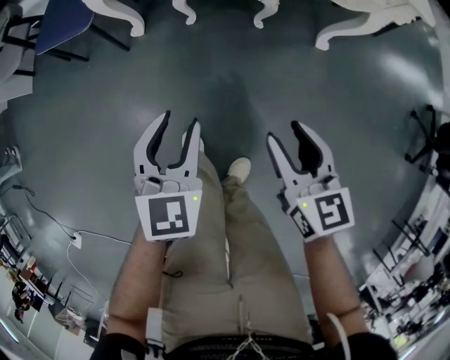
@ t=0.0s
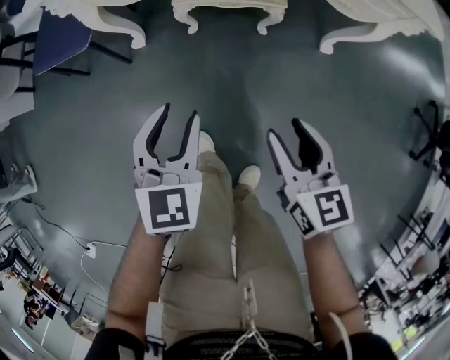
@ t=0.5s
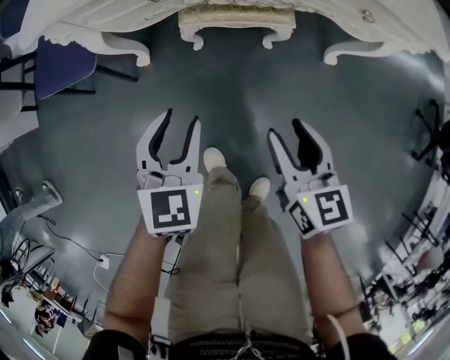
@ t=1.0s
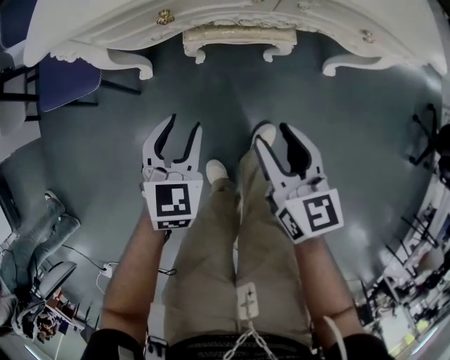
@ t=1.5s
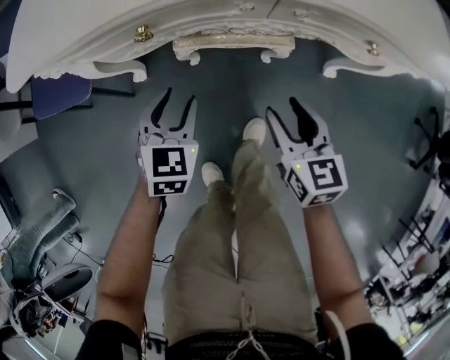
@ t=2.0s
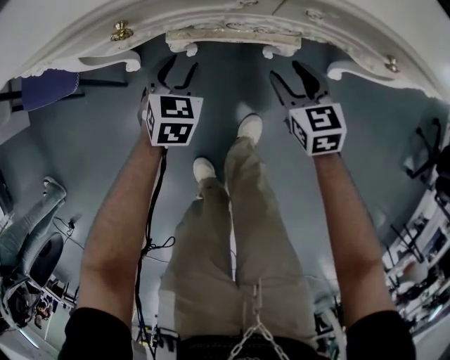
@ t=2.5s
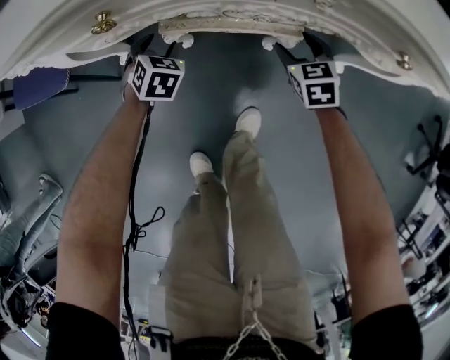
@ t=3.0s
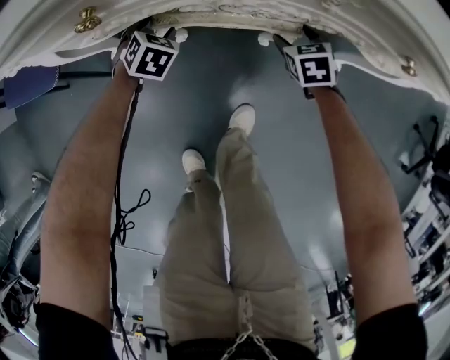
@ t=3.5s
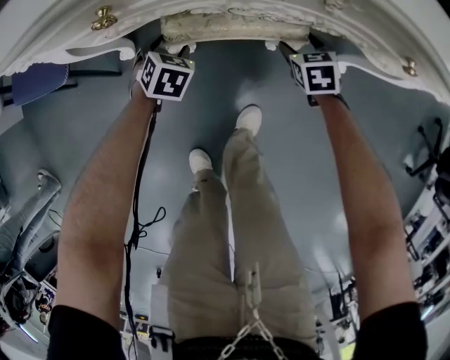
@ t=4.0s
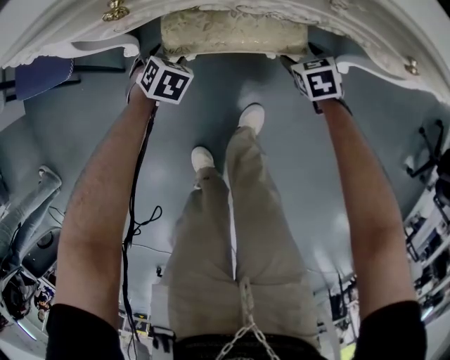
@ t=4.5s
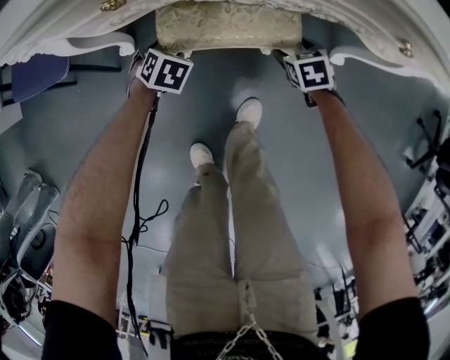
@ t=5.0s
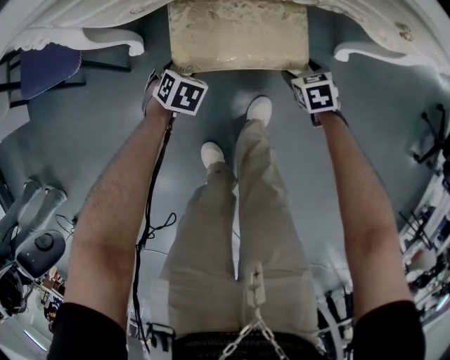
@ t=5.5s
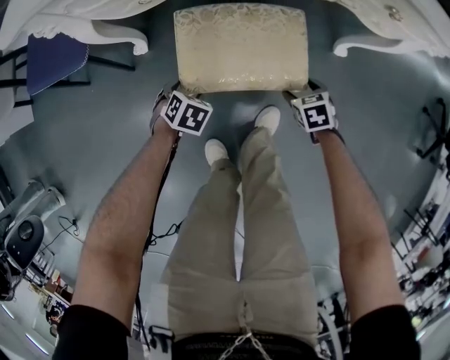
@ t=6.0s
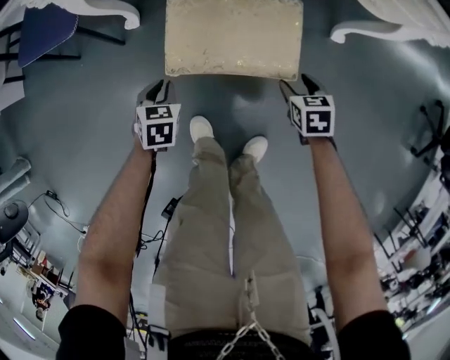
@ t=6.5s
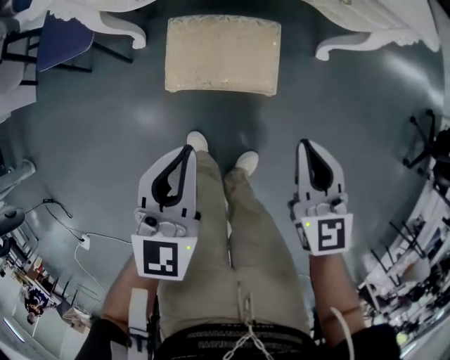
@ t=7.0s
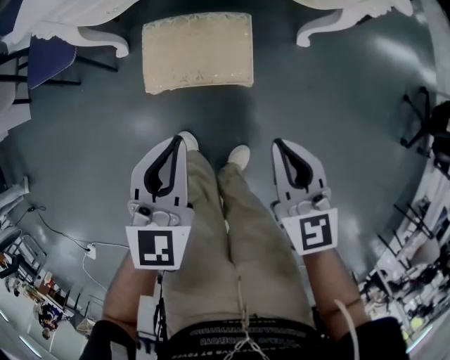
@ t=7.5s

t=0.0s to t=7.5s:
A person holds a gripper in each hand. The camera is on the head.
t=0.0s to t=2.0s: The right gripper shifts by some 5 cm; the left gripper travels downward by some 10 cm.
t=2.0s to t=4.0s: The right gripper is displaced forward, downward and to the right by some 20 cm, swivels about 30 degrees, and opens; the left gripper shifts some 15 cm downward and forward, and changes its angle by approximately 20 degrees.
t=4.0s to t=5.5s: The right gripper moves roughly 10 cm, while the left gripper changes place by roughly 10 cm.
t=5.5s to t=7.5s: Both grippers move upward, roughly 25 cm. The left gripper tips its fingers upward by roughly 50 degrees, and closes. Meanwhile the right gripper angles its fingers upward, by about 40 degrees, and closes.

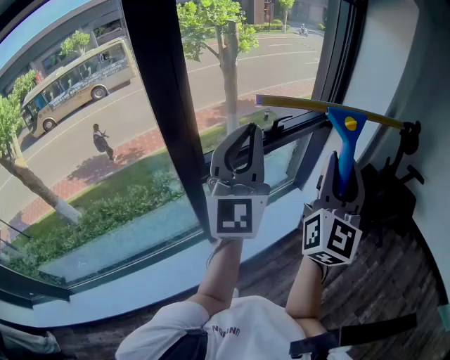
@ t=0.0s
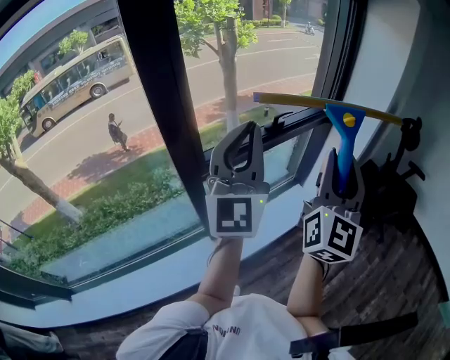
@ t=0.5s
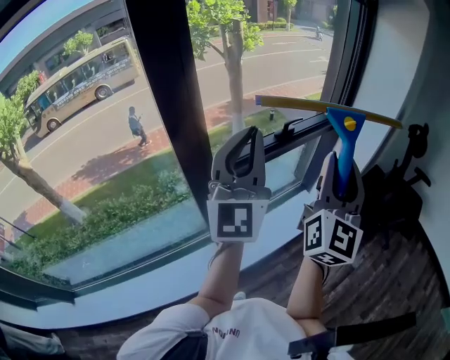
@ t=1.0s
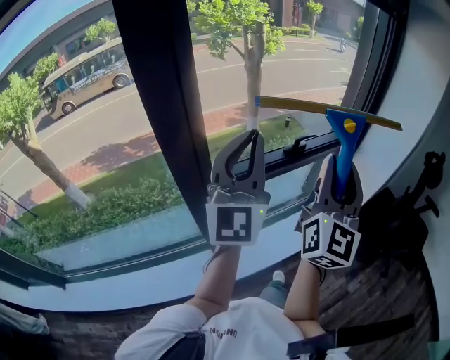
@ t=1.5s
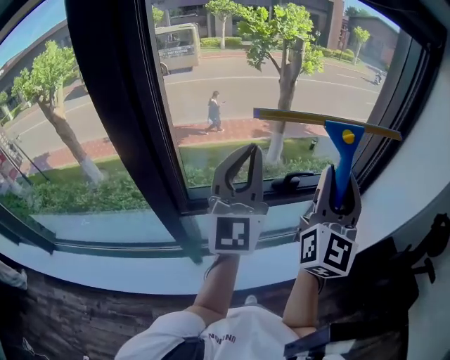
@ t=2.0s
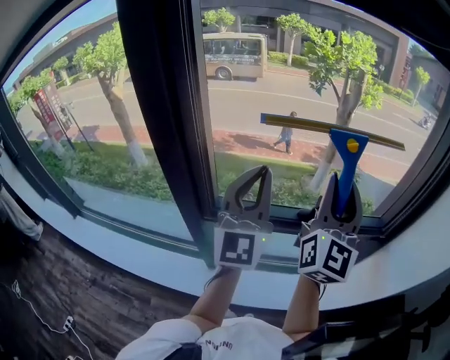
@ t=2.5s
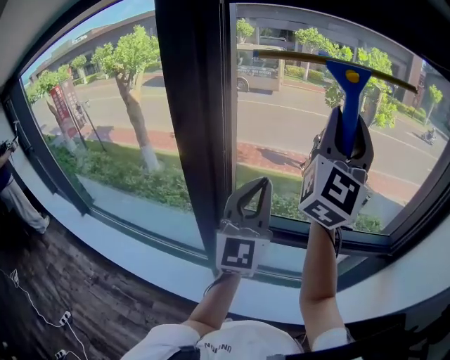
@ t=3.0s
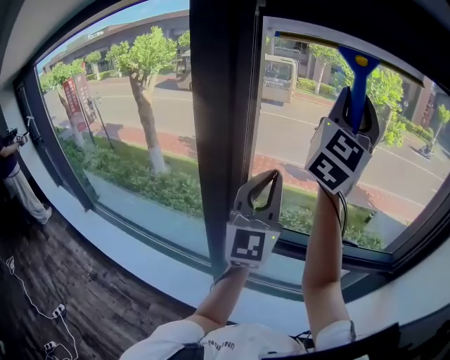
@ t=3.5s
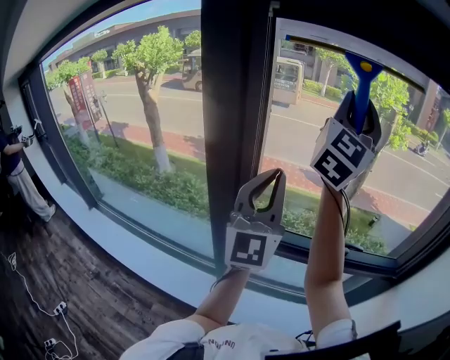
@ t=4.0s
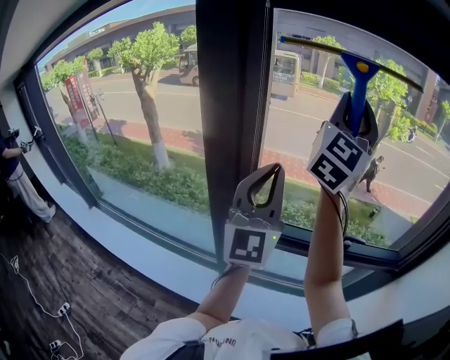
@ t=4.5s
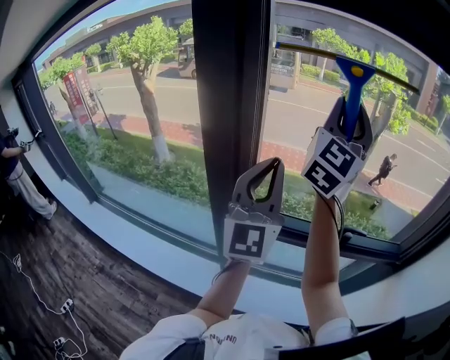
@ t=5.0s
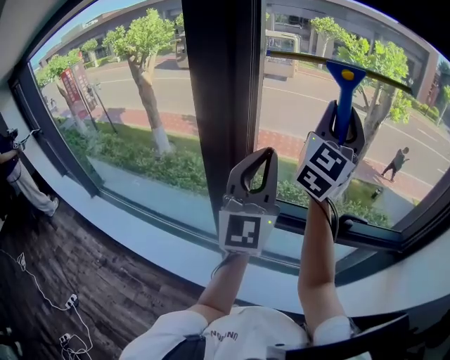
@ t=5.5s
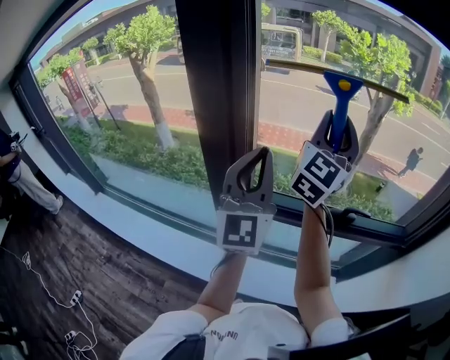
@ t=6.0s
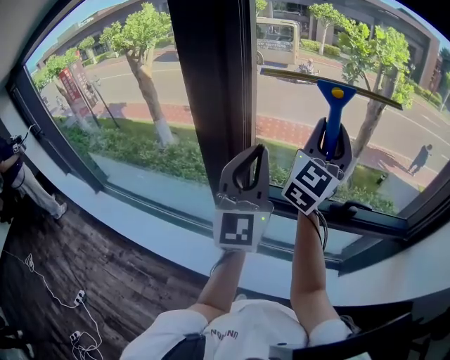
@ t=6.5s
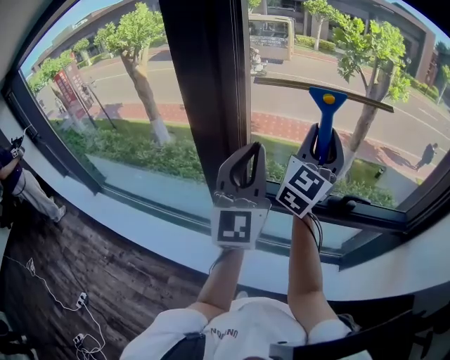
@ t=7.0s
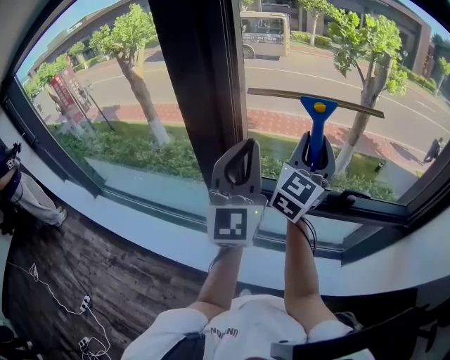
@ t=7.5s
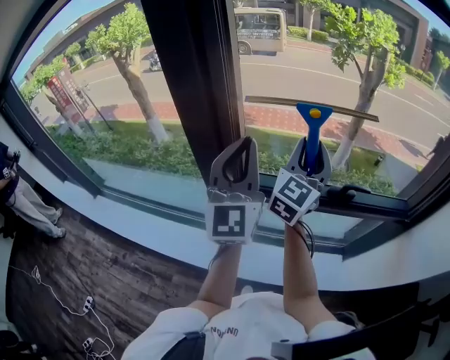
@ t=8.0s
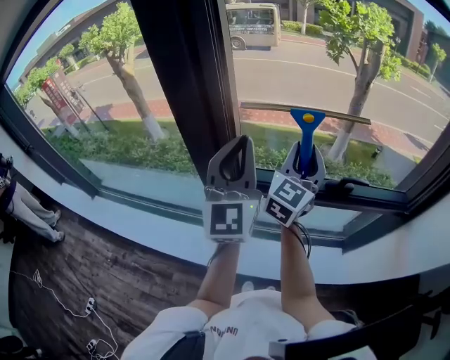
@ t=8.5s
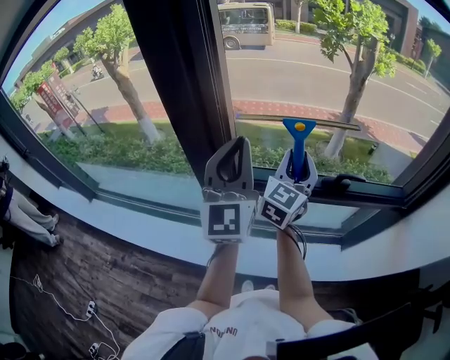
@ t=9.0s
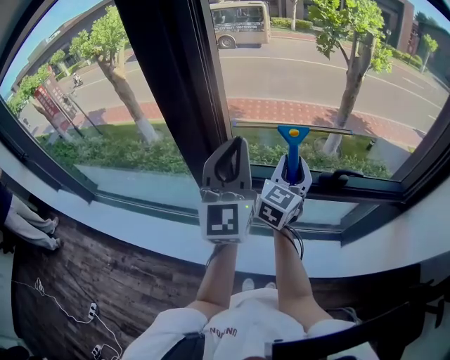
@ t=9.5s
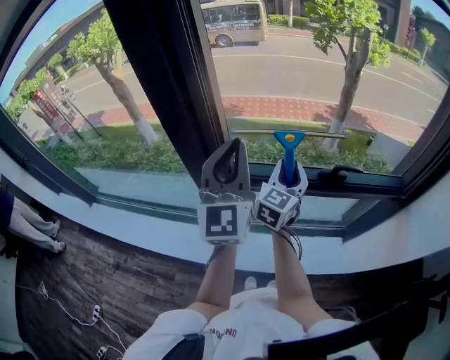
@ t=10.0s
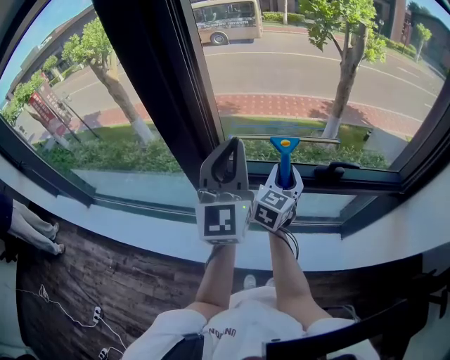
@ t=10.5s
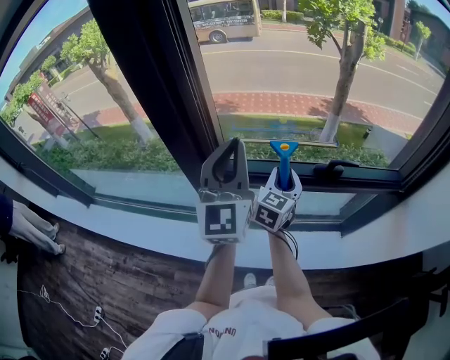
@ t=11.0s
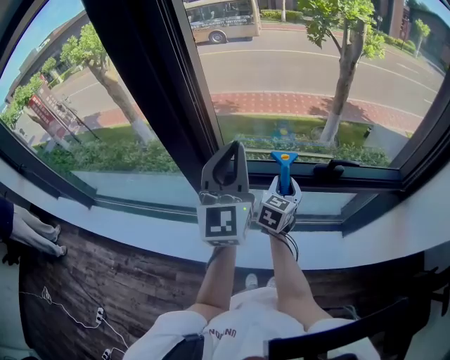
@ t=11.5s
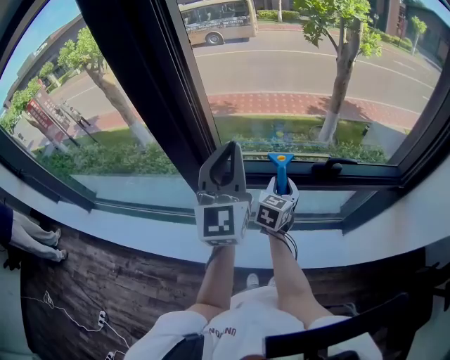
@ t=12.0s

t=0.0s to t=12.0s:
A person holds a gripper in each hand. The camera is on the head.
t=0.0s to t=2.0s: Both grippers move forward, some 25 cm. The left gripper swivels some 20 degrees, while the right gripper turns by about 20 degrees.
t=2.0s to t=4.0s: The left gripper travels to the left by some 15 cm, and turns by some 20 degrees. Meanwhile the right gripper shifts roughly 35 cm upward, to the left and forward.
t=4.0s to t=6.0s: The right gripper shifts roughly 15 cm downward.
t=6.0s to t=8.0s: The right gripper is displaced downward by roughly 15 cm.
t=8.0s to t=10.0s: The right gripper moves downward, some 15 cm.
t=10.0s to t=12.0s: The right gripper goes some 10 cm downward.

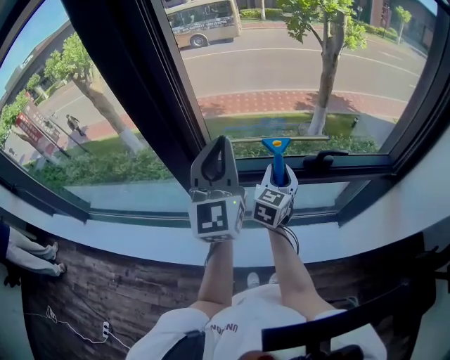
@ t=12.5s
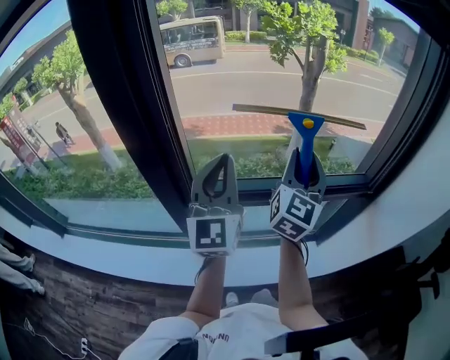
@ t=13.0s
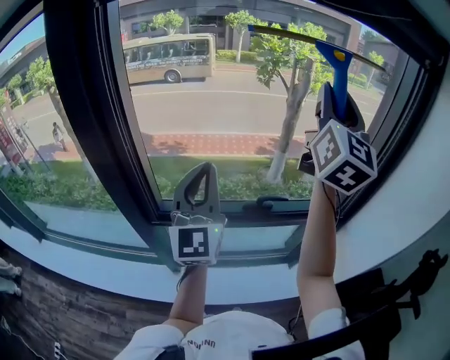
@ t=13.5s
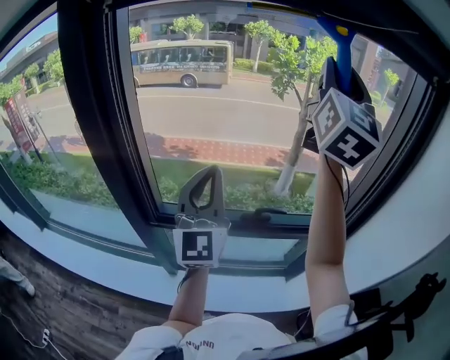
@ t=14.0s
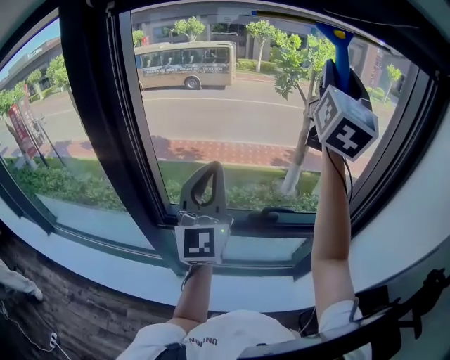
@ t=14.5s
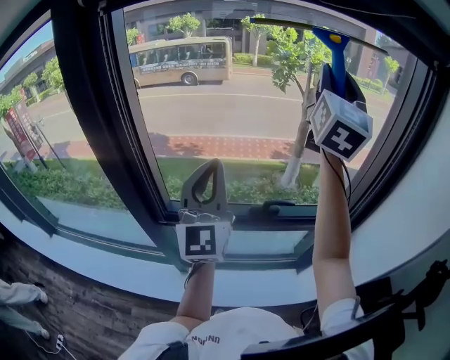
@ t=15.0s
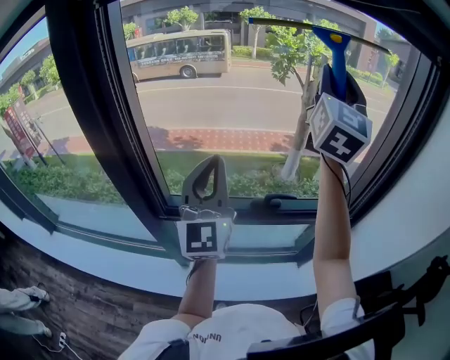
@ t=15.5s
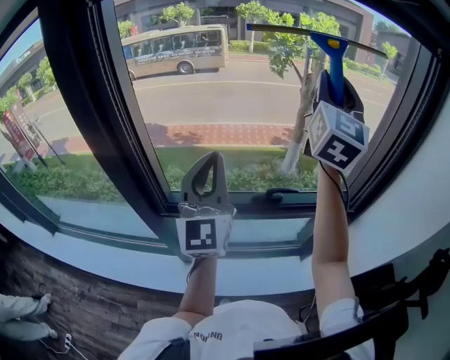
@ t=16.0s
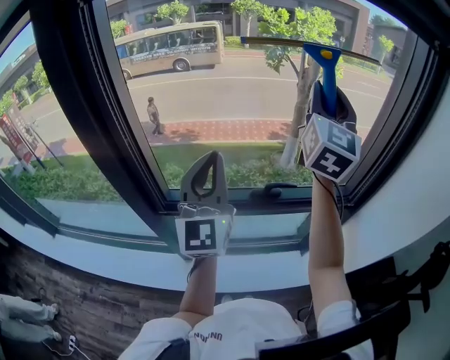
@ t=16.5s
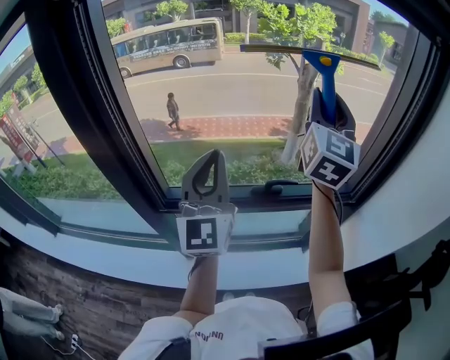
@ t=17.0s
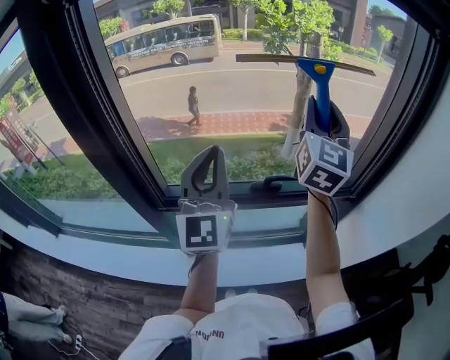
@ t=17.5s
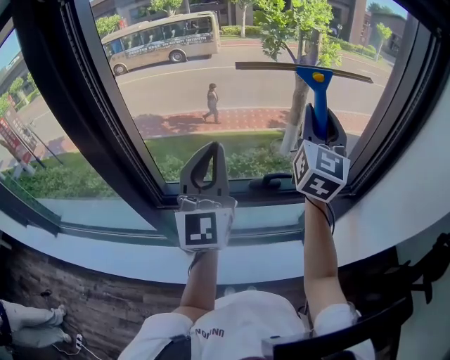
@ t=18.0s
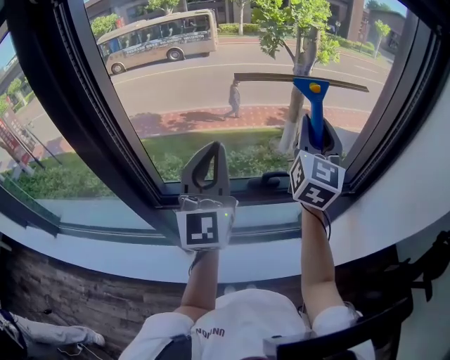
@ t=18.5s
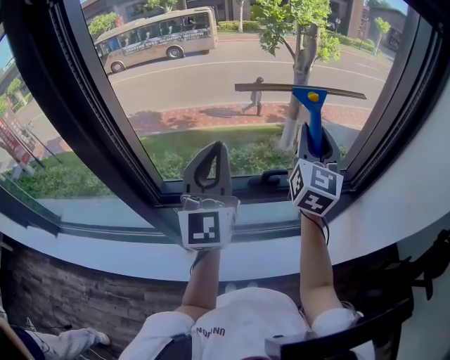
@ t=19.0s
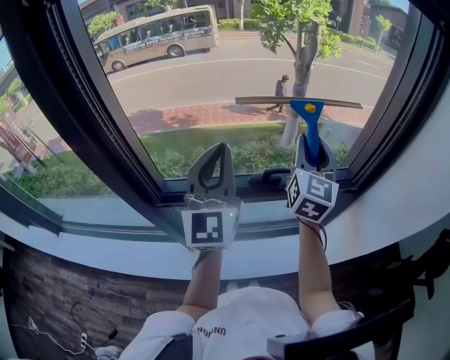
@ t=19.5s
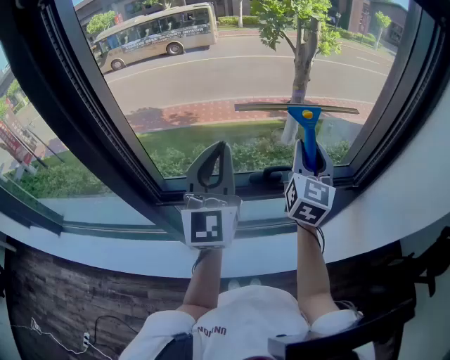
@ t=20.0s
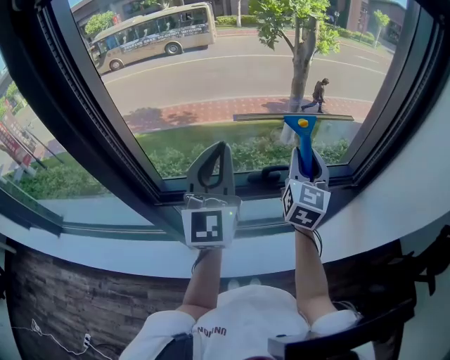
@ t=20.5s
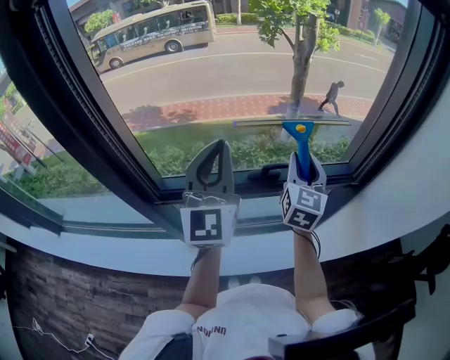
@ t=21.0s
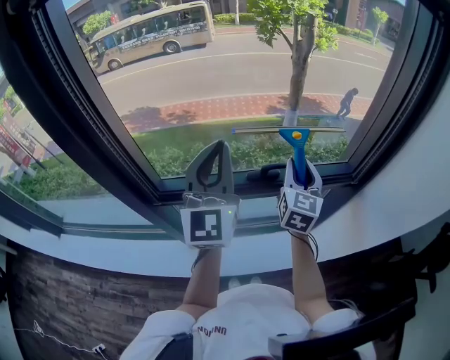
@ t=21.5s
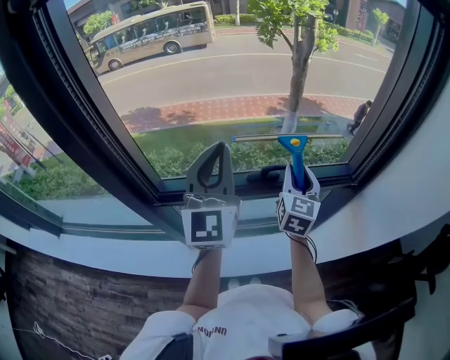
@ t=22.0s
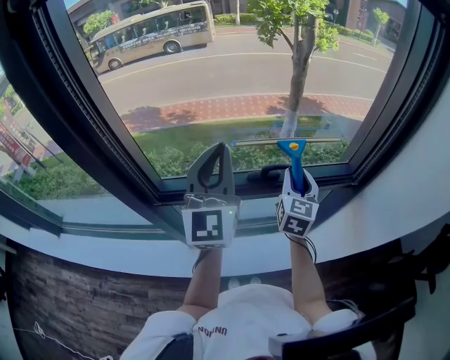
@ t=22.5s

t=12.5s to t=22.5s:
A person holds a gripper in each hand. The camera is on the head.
t=12.5s to t=14.5s: The right gripper heads upward and to the right, covering approximately 50 cm, and tilts its fingers some 40 degrees upward. The left gripper is displaced to the right and upward by roughly 15 cm.
t=14.5s to t=16.5s: The right gripper moves downward, approximately 10 cm.
t=16.5s to t=18.5s: The right gripper heads downward, covering roughly 10 cm.
t=18.5s to t=20.5s: The right gripper heads downward, covering some 10 cm.
t=20.5s to t=22.5s: The right gripper goes some 10 cm downward.
